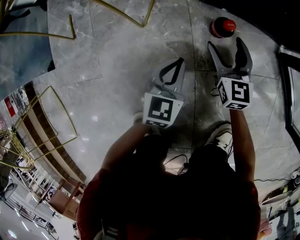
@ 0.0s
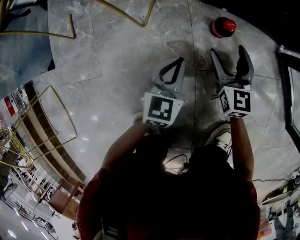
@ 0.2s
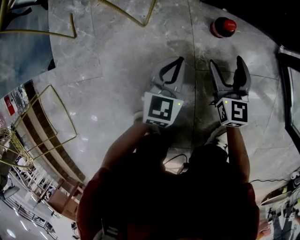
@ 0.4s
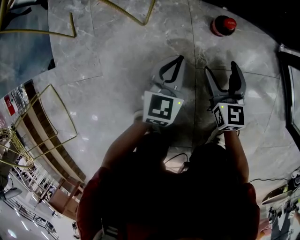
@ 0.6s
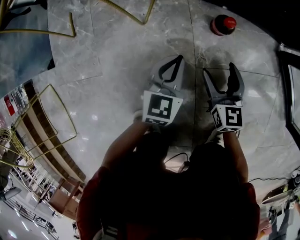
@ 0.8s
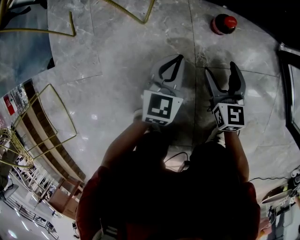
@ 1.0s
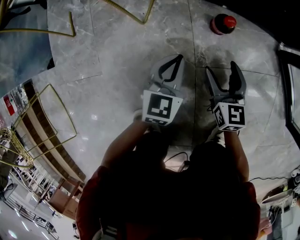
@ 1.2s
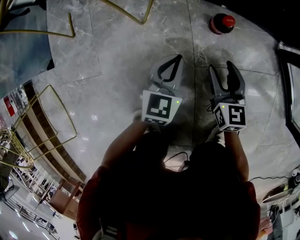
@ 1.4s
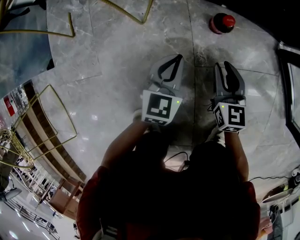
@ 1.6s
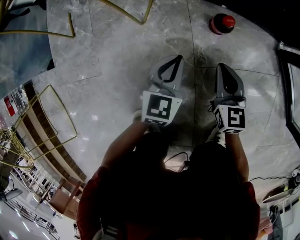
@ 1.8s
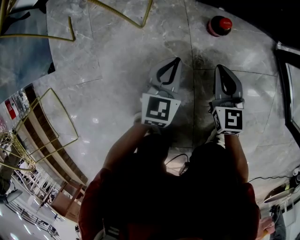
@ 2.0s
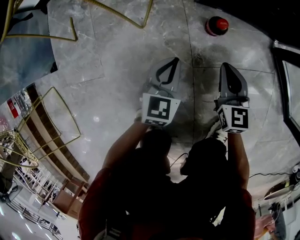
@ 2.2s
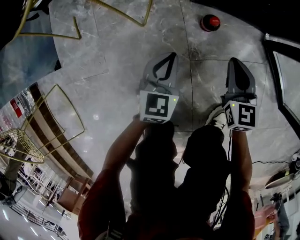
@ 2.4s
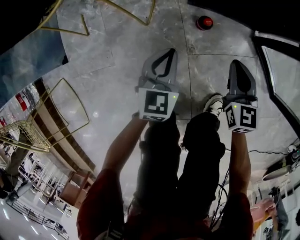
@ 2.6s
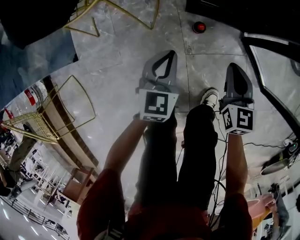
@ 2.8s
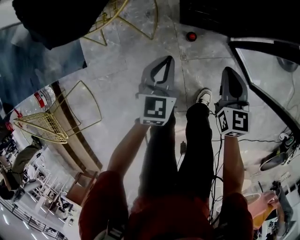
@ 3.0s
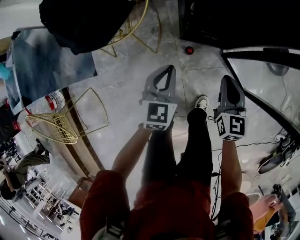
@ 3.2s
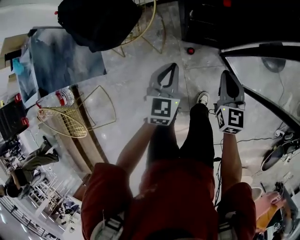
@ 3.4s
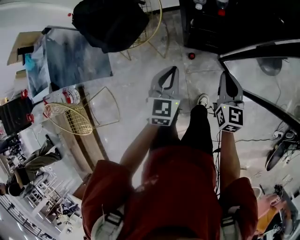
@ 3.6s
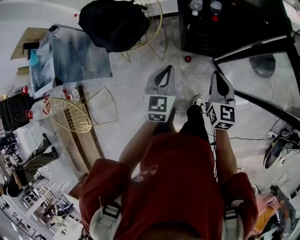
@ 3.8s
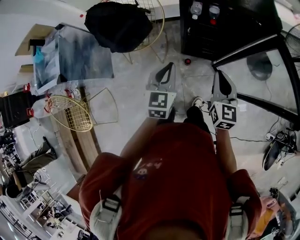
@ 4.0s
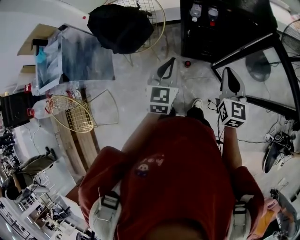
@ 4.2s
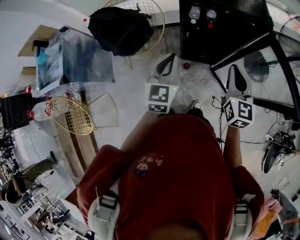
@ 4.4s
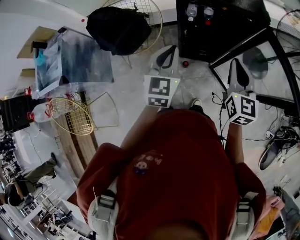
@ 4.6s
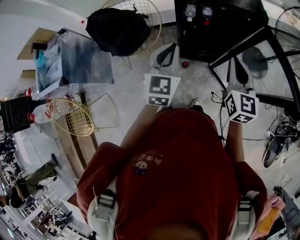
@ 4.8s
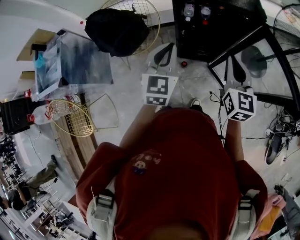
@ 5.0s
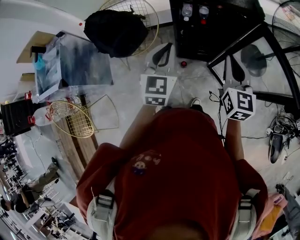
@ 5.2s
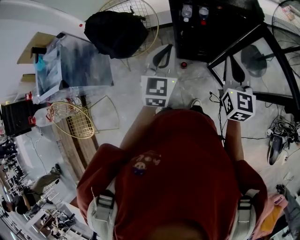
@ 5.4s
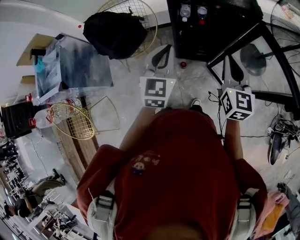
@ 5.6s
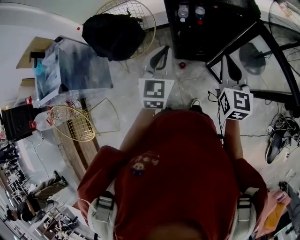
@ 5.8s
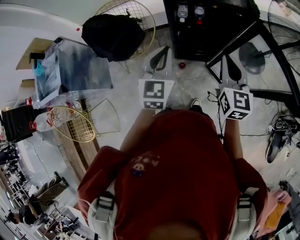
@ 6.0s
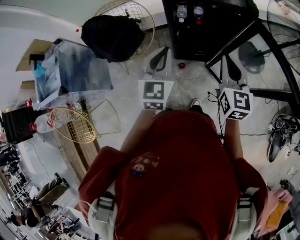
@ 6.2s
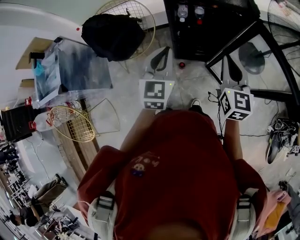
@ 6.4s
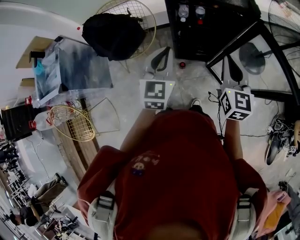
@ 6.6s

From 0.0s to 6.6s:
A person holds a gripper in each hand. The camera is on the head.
From 0.0s to 1.6s: The right gripper is displaced backward by about 10 cm, and closes its fingers.
From 1.6s to 3.2s: Both grippers move upward, roughly 60 cm.
From 3.2s to 5.0s: Both grippers travel together upward, some 40 cm.
From 5.0s to 6.6s: Both grippers stay about where they are.

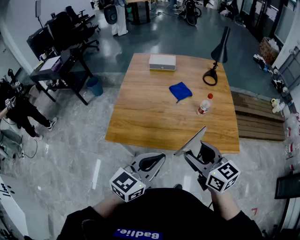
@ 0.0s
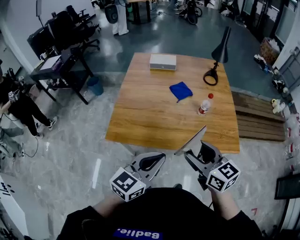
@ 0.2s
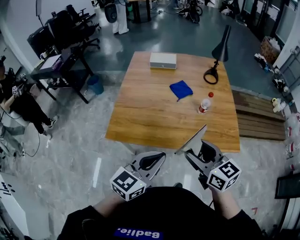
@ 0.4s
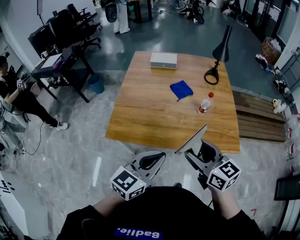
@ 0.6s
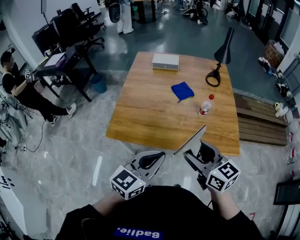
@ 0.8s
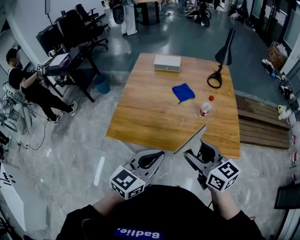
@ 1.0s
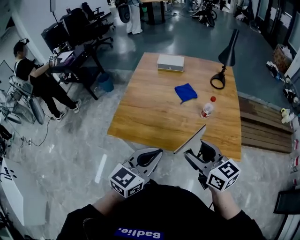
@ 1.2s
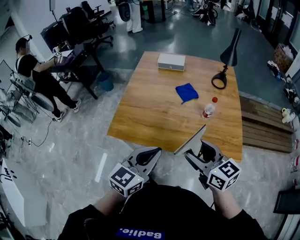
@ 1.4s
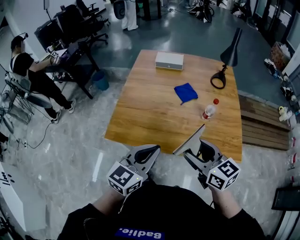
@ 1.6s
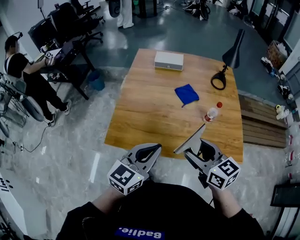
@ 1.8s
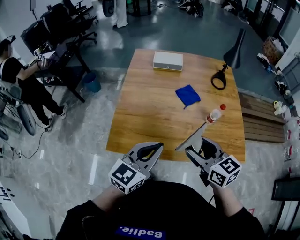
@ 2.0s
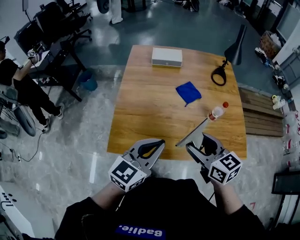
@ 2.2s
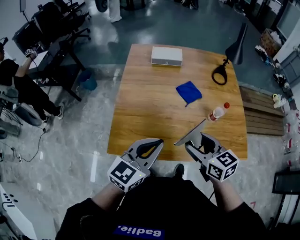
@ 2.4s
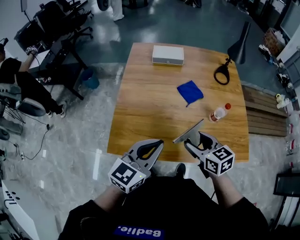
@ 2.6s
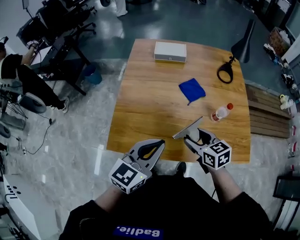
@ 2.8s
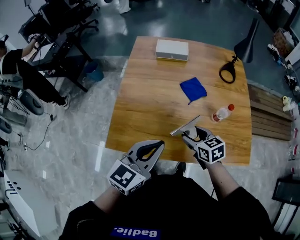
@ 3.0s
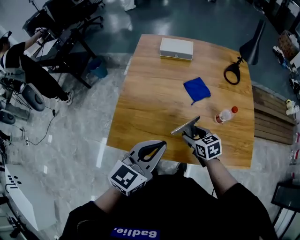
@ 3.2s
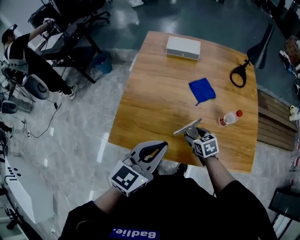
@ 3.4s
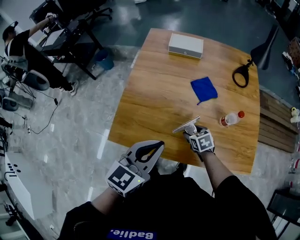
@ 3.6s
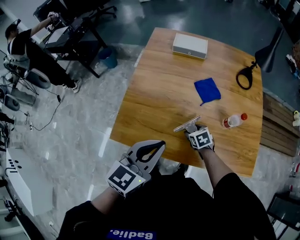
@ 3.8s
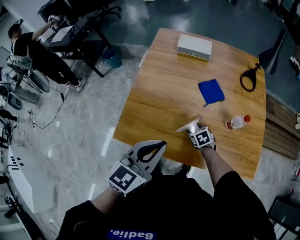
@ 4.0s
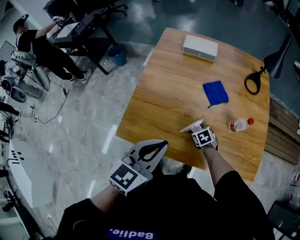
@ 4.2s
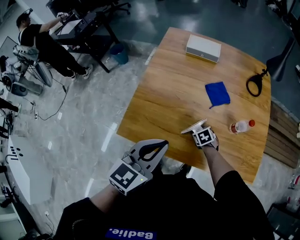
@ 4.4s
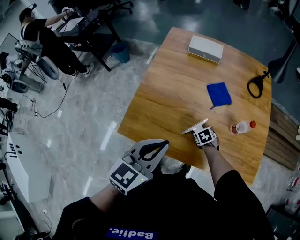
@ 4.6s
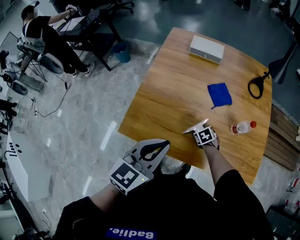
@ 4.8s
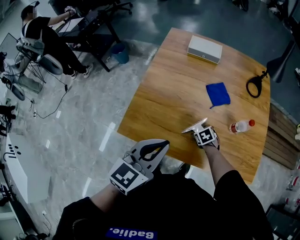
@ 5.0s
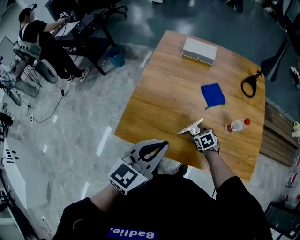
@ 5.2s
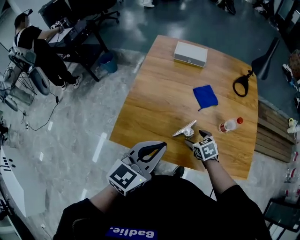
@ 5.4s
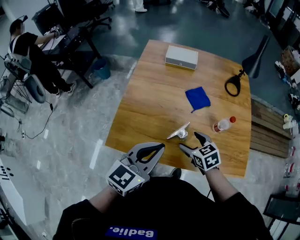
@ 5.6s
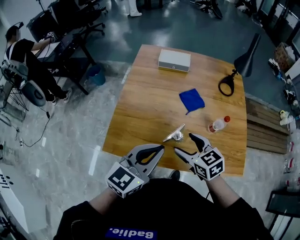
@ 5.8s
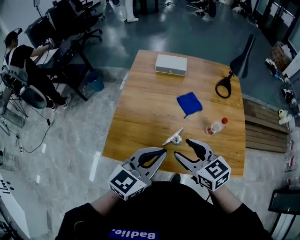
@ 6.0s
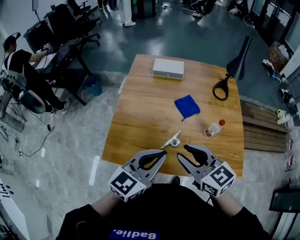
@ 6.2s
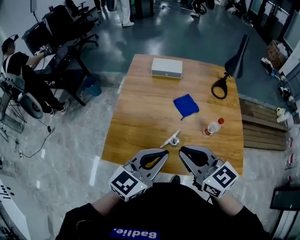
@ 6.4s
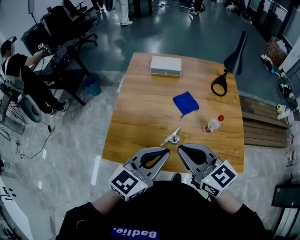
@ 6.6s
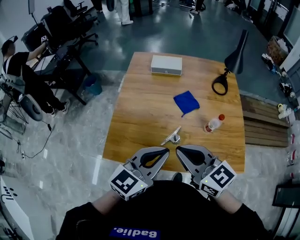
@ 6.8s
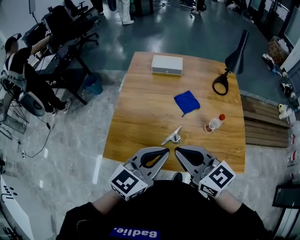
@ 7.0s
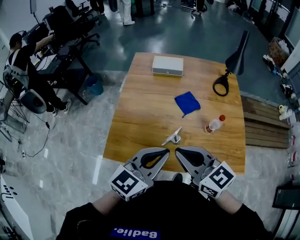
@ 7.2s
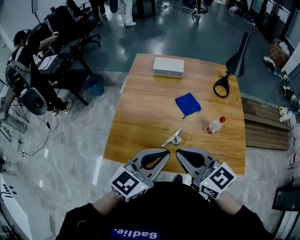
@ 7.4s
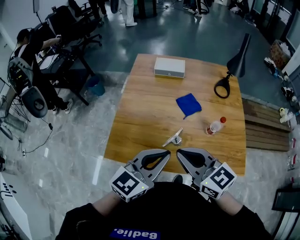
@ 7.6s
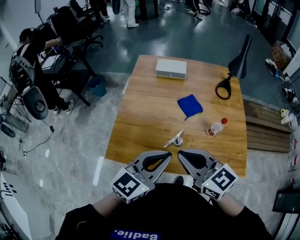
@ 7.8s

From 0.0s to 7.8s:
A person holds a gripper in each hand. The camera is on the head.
From 0.0s to 1.6s: The right gripper ends up about 5 cm from where it was, while the left gripper shifts some 5 cm forward.
From 1.6s to 3.2s: The left gripper shifts some 15 cm forward; the right gripper travels downward and forward by some 30 cm, and changes its angle by some 30 degrees.
From 3.2s to 4.6s: The right gripper heads downward, covering approximately 15 cm, and turns by about 30 degrees.
From 4.6s to 6.2s: The right gripper goes about 40 cm upward, tilts its fingers roughly 50 degrees upward, and closes. Meanwhile the left gripper shifts some 5 cm to the right.
From 6.2s to 7.8s: The right gripper closes.

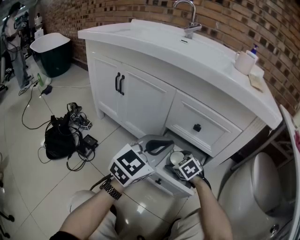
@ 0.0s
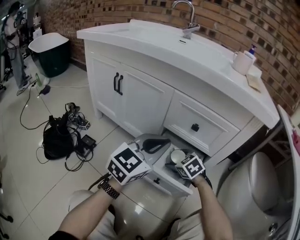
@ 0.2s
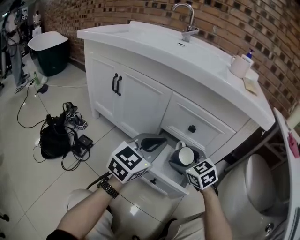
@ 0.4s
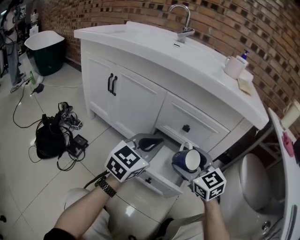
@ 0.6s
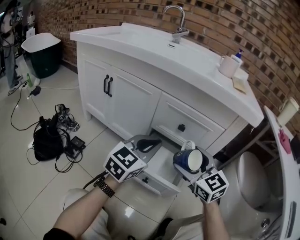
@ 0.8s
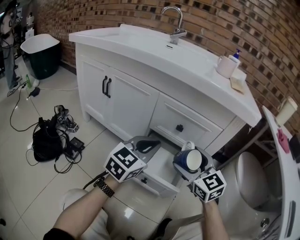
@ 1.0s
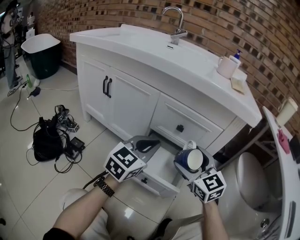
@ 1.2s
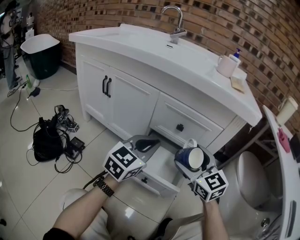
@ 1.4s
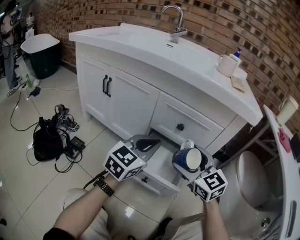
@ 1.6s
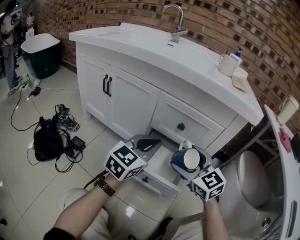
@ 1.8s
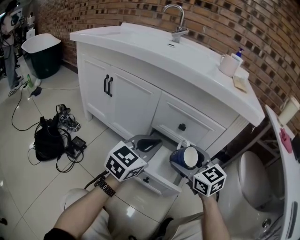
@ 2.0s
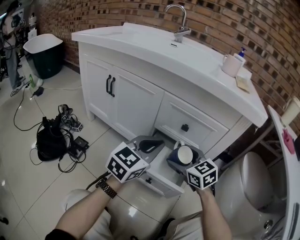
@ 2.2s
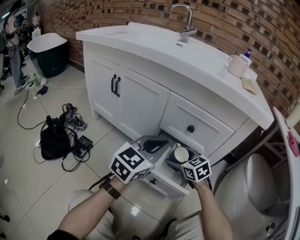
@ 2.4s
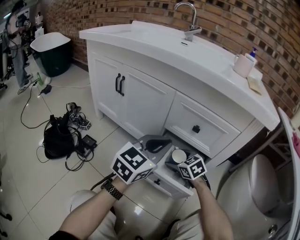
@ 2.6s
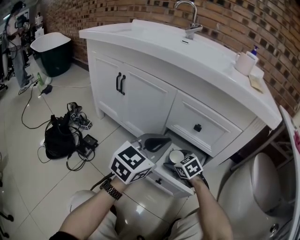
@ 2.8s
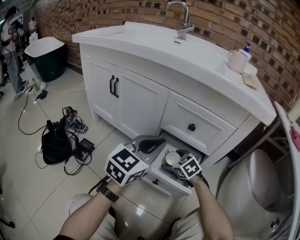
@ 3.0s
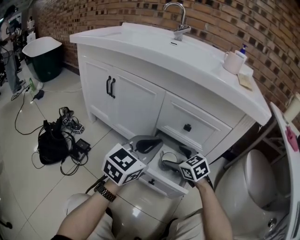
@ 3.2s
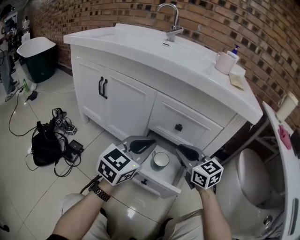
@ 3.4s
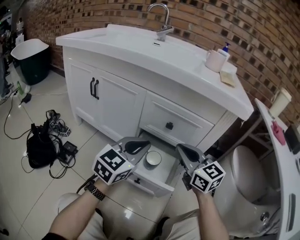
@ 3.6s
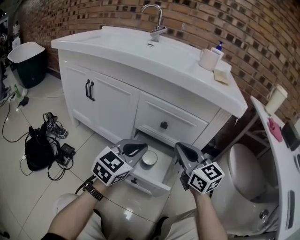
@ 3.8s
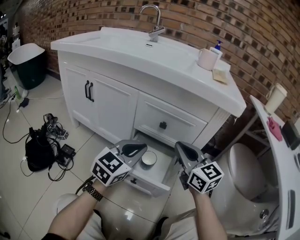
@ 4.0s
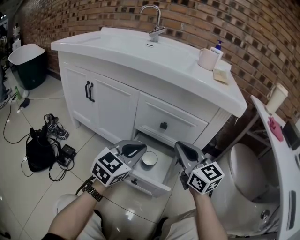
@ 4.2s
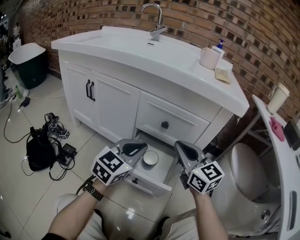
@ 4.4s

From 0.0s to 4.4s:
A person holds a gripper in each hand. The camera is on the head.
From 0.0s to 1.4s: The right gripper heads upward, covering roughly 25 cm, and tilts its fingers some 40 degrees upward.
From 1.4s to 3.0s: The right gripper is displaced downward by approximately 20 cm, and tilts its fingers some 40 degrees downward.
From 3.0s to 4.4s: The right gripper shifts about 25 cm upward, tips its fingers upward by roughly 50 degrees, and closes up.

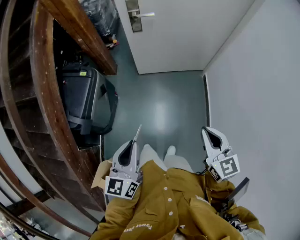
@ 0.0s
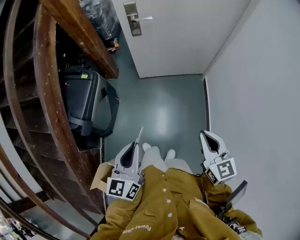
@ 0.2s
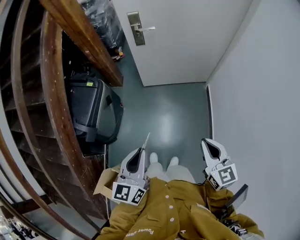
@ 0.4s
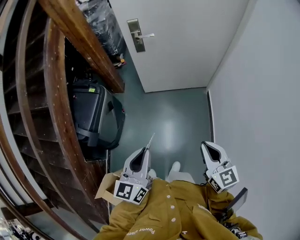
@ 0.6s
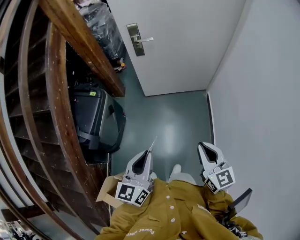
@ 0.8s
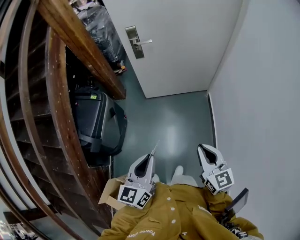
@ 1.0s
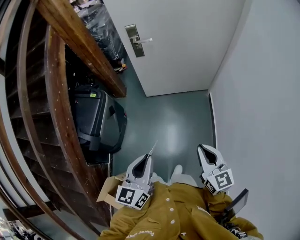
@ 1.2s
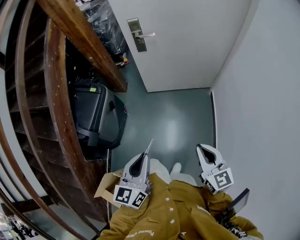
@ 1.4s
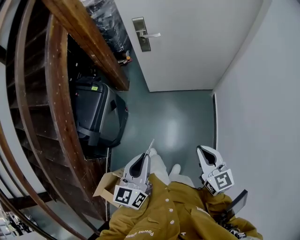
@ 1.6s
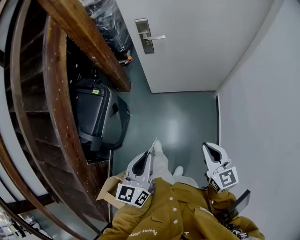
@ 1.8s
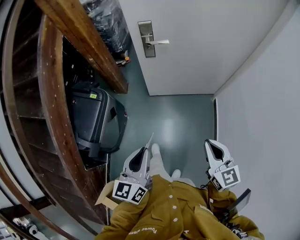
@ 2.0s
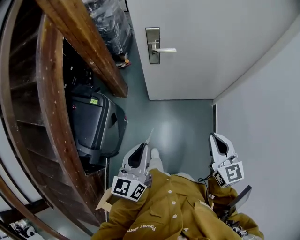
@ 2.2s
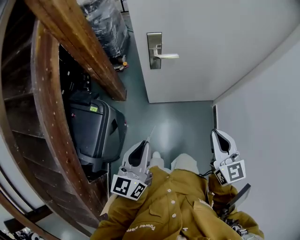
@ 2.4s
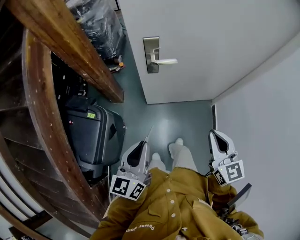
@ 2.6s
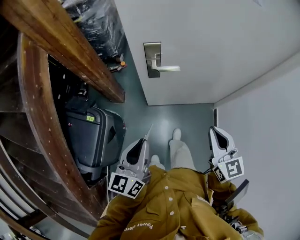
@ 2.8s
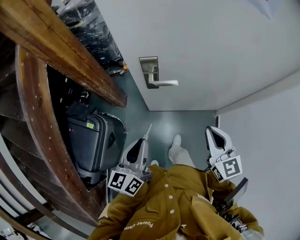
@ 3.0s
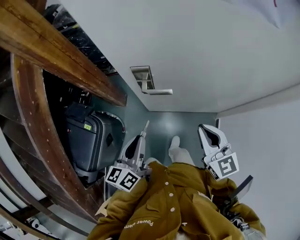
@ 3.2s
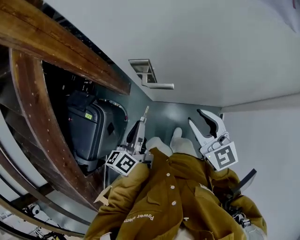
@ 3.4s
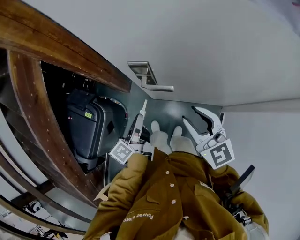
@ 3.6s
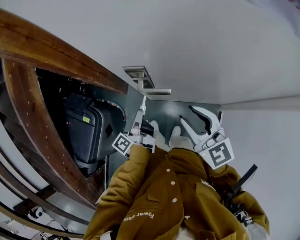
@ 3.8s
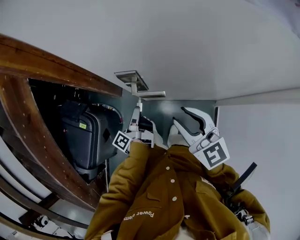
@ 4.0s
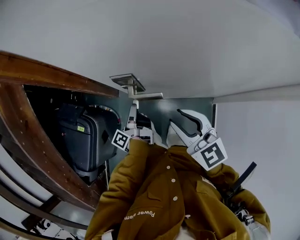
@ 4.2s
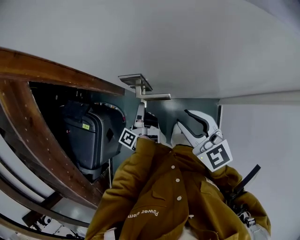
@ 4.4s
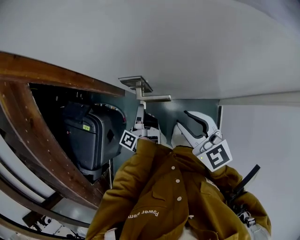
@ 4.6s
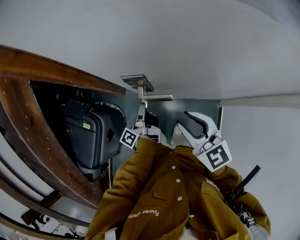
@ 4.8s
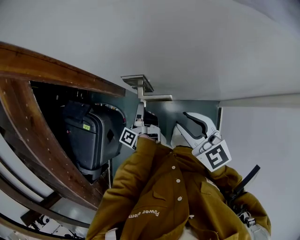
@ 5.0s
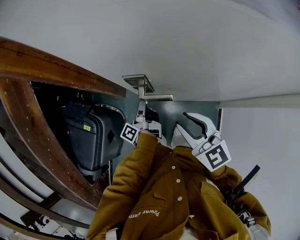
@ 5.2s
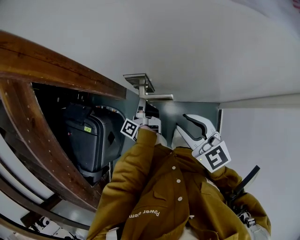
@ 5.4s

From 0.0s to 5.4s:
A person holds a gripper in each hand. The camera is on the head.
From 0.0s to 1.4s: The left gripper is displaced to the right by roughly 5 cm.
From 1.4s to 2.8s: The pair of grippers is taken forward, approximately 40 cm.
From 2.8s to 4.0s: The right gripper travels forward by approximately 20 cm, rotates roughly 20 degrees, and opens, while the left gripper moves forward and downward, some 30 cm, and rotates around the line of its fingers by about 70 degrees, counterclockwise from behind.
From 4.0s to 5.4s: The left gripper travels forward by some 5 cm.
